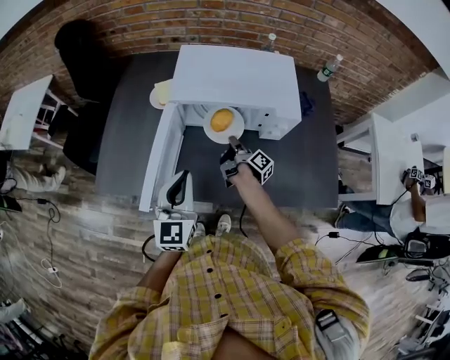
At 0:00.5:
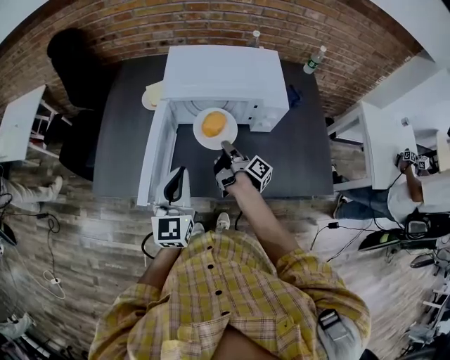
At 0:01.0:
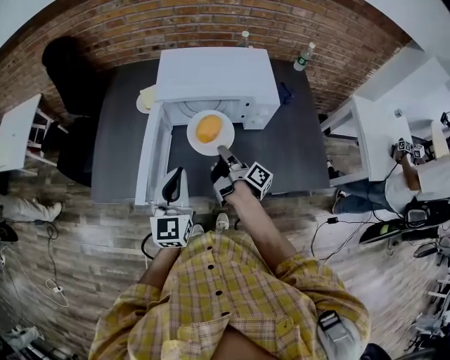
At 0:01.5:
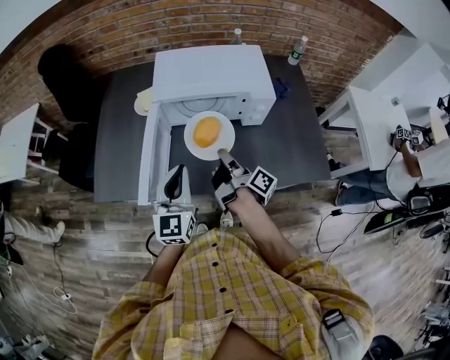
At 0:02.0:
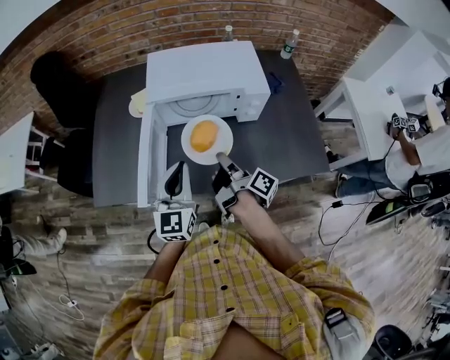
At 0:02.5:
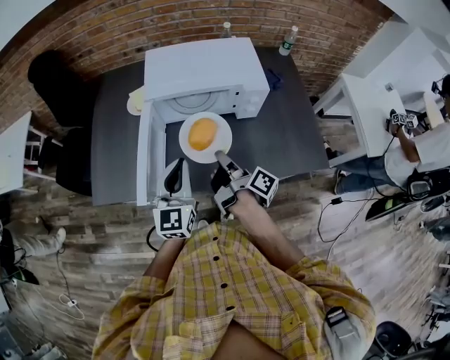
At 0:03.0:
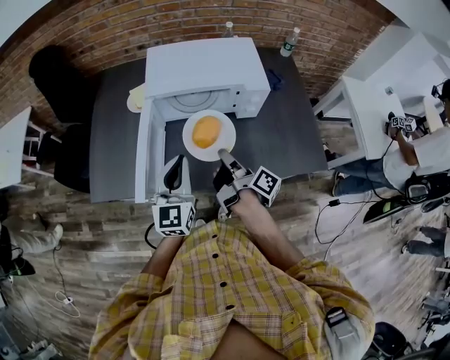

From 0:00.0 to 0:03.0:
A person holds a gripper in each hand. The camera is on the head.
From 0:00.0 to 0:01.5: The right gripper travels backward and upward by about 20 cm.
From 0:01.5 to 0:03.0: The grippers make only small movements.

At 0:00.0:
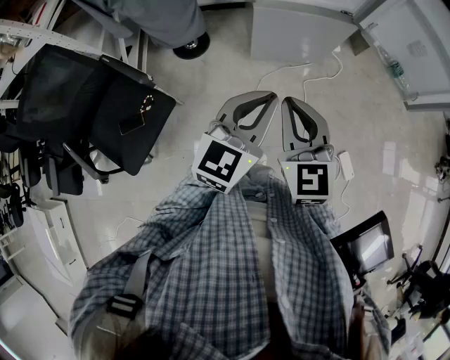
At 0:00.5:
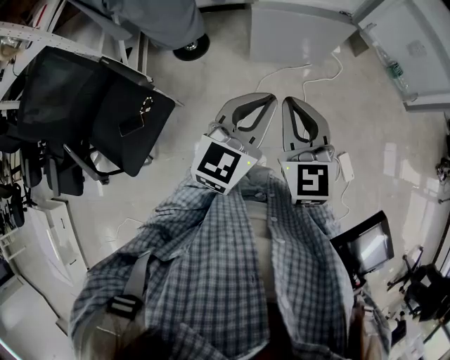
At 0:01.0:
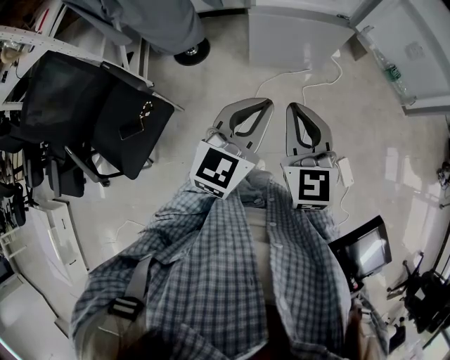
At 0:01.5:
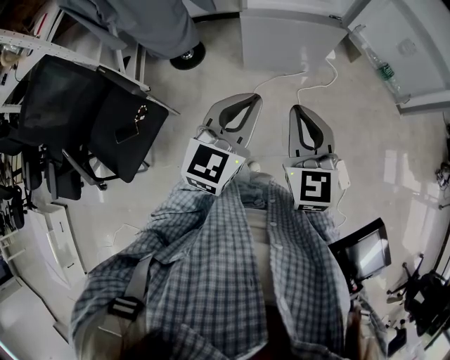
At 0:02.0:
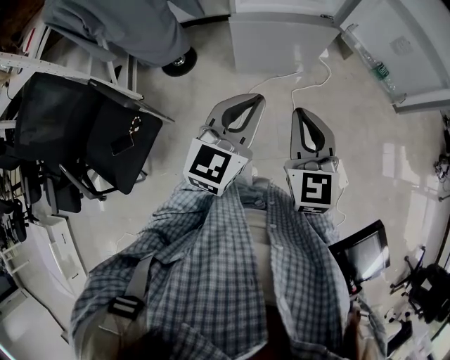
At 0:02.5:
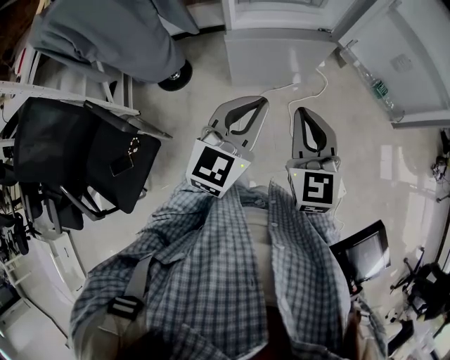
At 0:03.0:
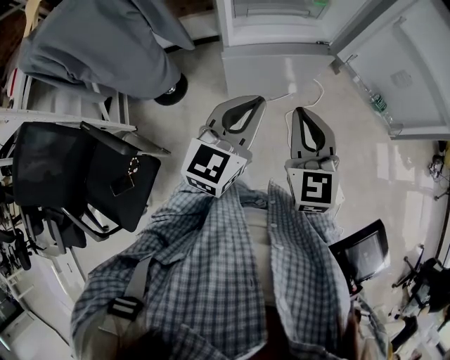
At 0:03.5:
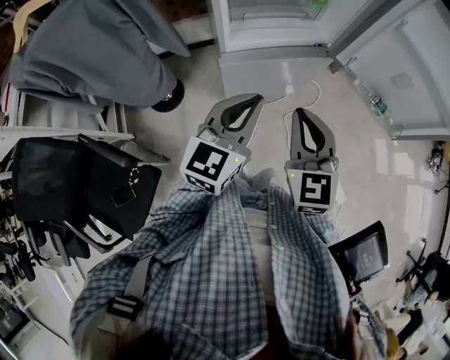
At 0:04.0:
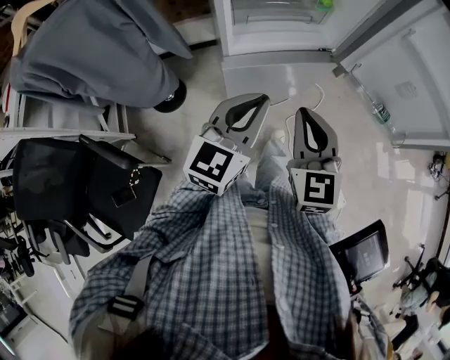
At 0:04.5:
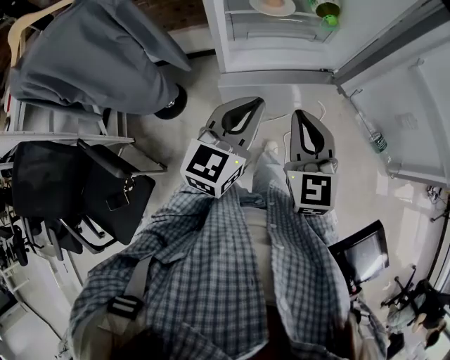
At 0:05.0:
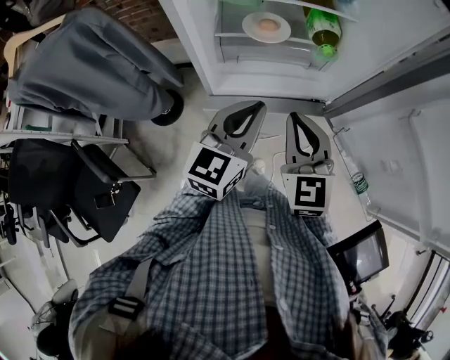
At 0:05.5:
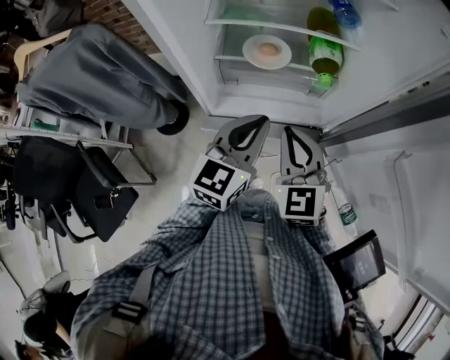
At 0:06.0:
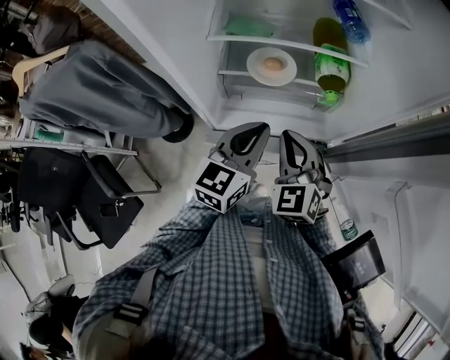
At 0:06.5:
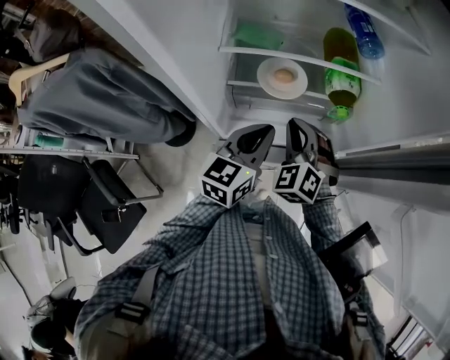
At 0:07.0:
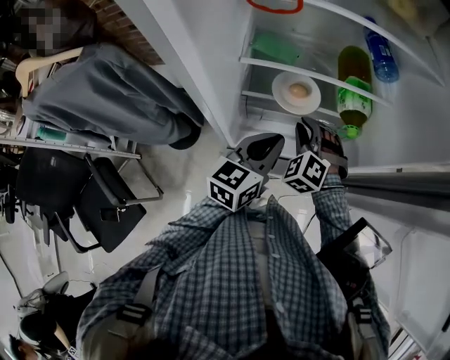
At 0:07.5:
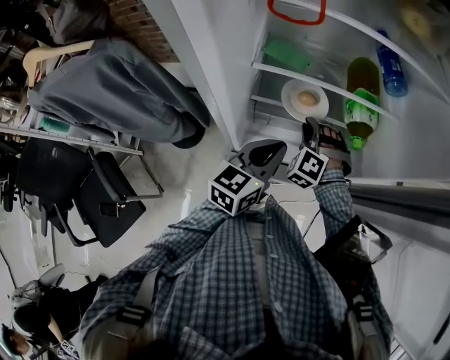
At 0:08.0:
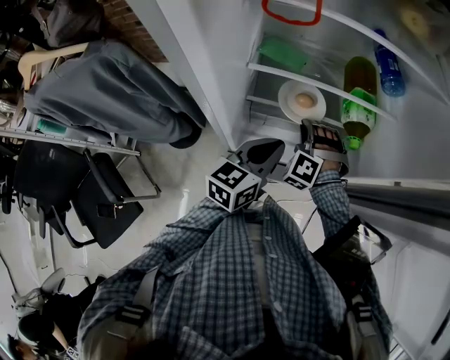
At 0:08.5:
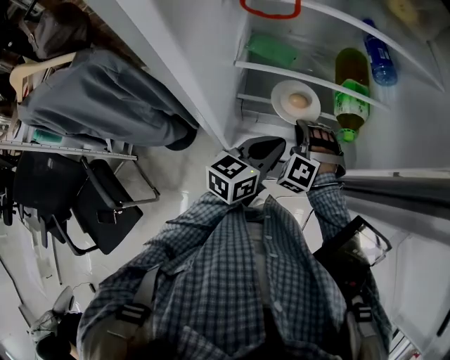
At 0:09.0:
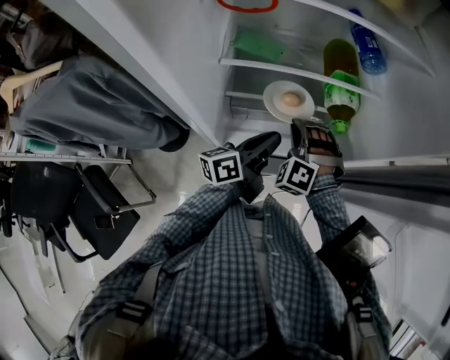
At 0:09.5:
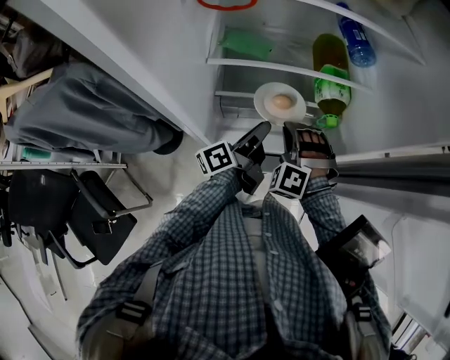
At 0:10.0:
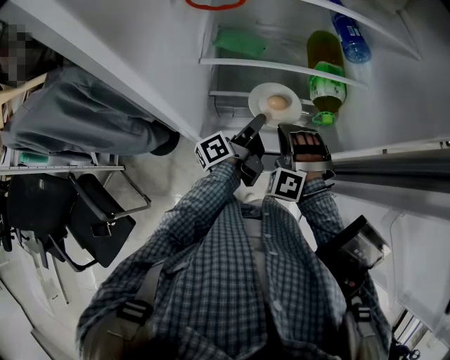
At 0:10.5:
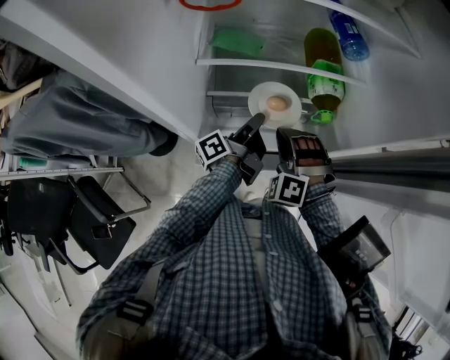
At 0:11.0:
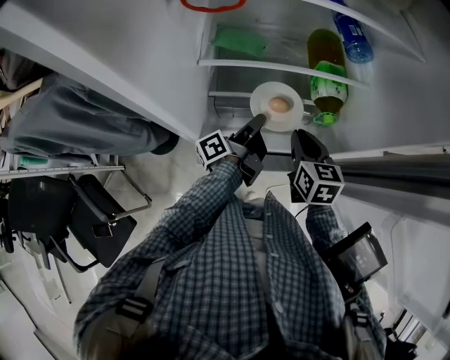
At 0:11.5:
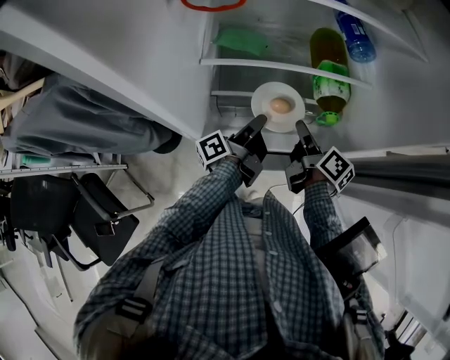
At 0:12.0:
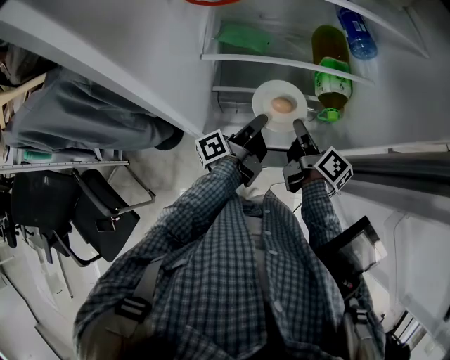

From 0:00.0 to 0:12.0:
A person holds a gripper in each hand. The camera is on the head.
From 0:00.0 to 0:02.0: The right gripper is displaced to the right and forward by roughly 10 cm; the left gripper shifts roughly 5 cm forward.
From 0:02.0 to 0:04.0: The grippers both shift forward by about 20 cm.
From 0:04.0 to 0:06.0: Both grippers travel together forward, about 30 cm. The right gripper changes its angle by roughly 30 degrees.
From 0:06.0 to 0:08.0: The left gripper is displaced forward and to the left by approximately 5 cm. Meanwhile the right gripper heads forward, downward and to the left, covering about 20 cm, and rotates around the line of its fingers by about 50 degrees, counterclockwise from behind.
From 0:08.0 to 0:10.0: The right gripper shifts by some 5 cm; the left gripper moves downward and forward, approximately 10 cm, twists about 60 degrees counterclockwise, seen from behind, and opens its fingers.
From 0:10.0 to 0:12.0: The right gripper travels to the right by approximately 5 cm, and rolls clockwise, seen from behind, by roughly 140 degrees.

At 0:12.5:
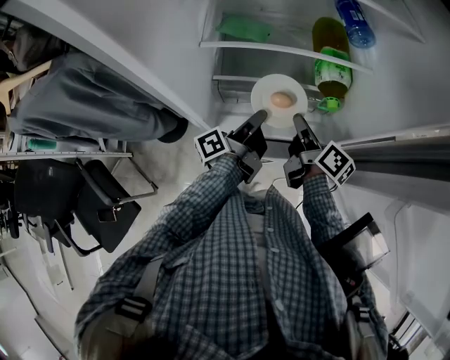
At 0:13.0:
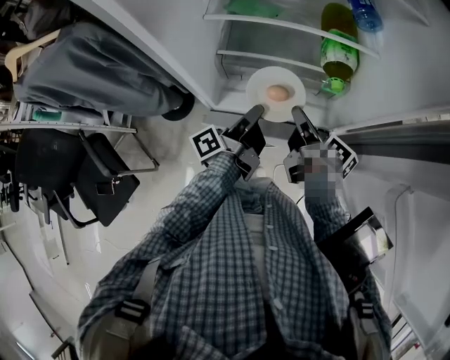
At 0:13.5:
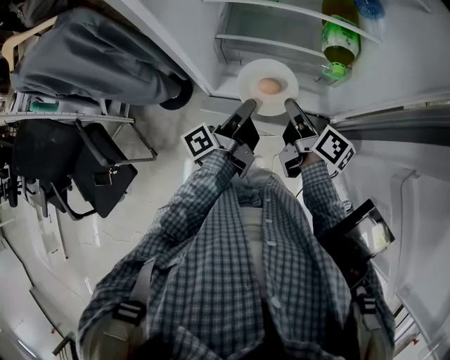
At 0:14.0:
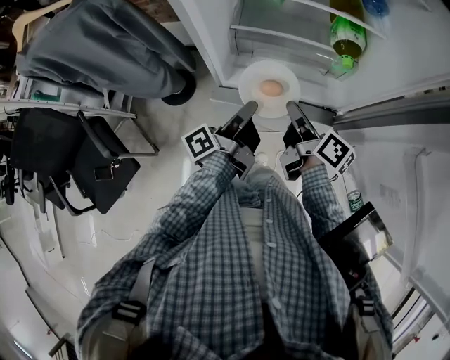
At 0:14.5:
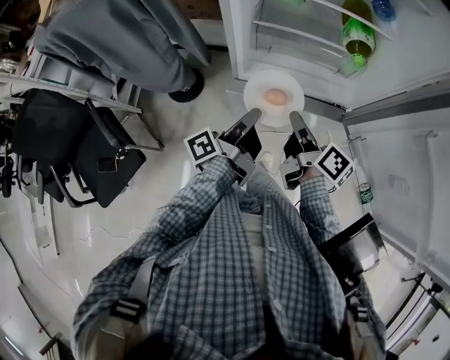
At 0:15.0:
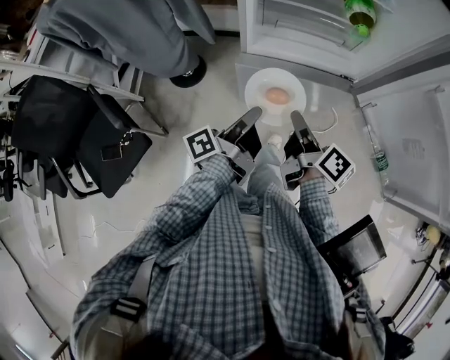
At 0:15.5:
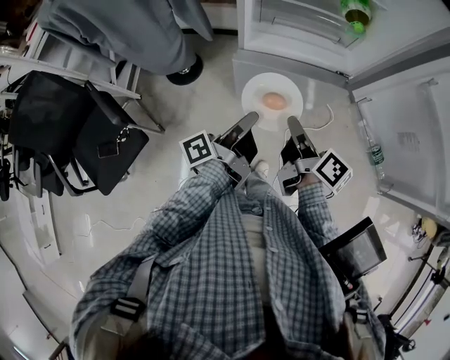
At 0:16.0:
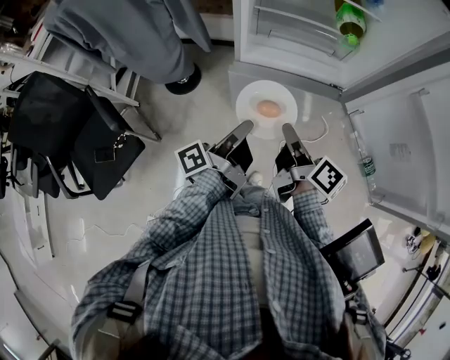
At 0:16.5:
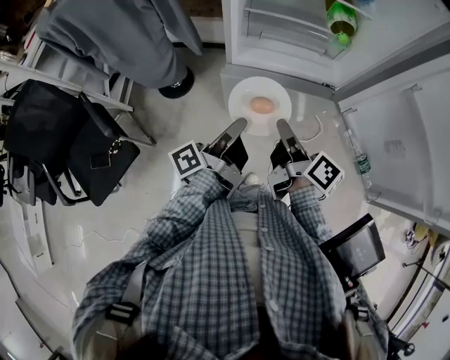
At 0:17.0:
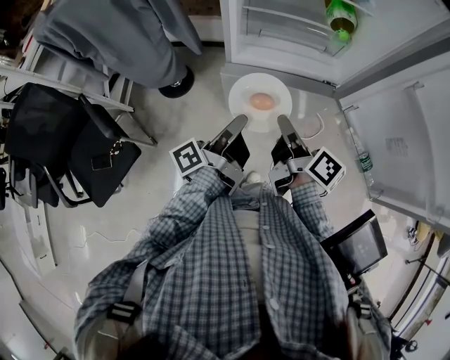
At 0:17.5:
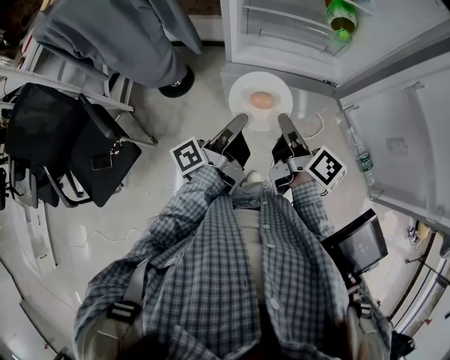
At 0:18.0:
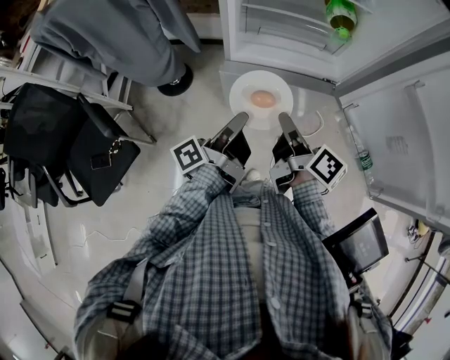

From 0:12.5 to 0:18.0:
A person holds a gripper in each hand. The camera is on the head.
From 0:12.5 to 0:14.5: Both grippers move backward and to the left, some 20 cm.
From 0:14.5 to 0:16.0: Both grippers travel together backward, approximately 15 cm.
From 0:16.0 to 0:18.0: The grippers stay close to where they were, moving slightly.

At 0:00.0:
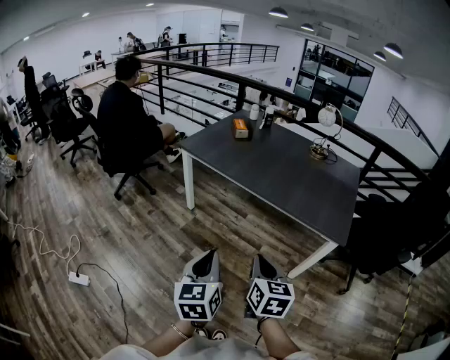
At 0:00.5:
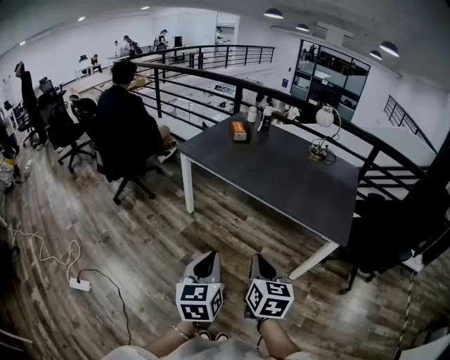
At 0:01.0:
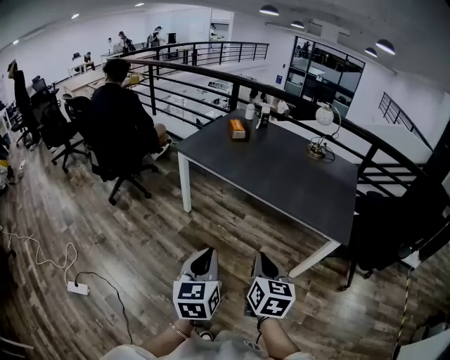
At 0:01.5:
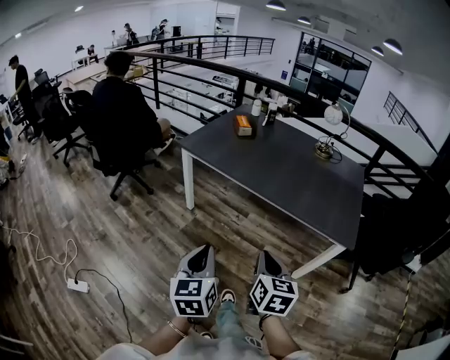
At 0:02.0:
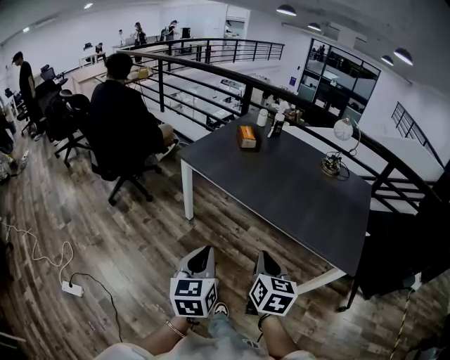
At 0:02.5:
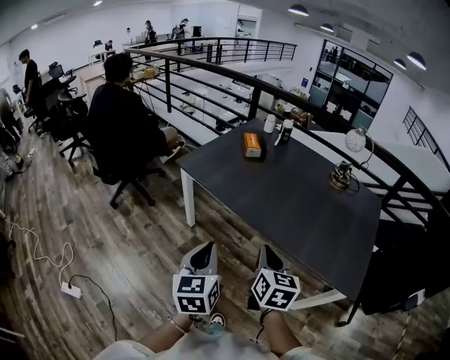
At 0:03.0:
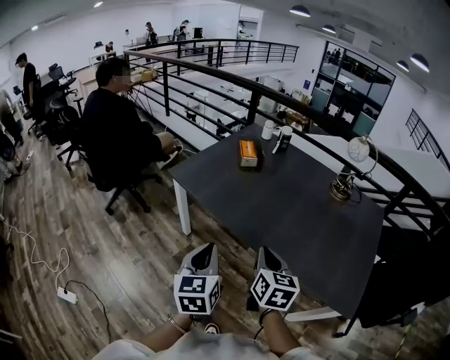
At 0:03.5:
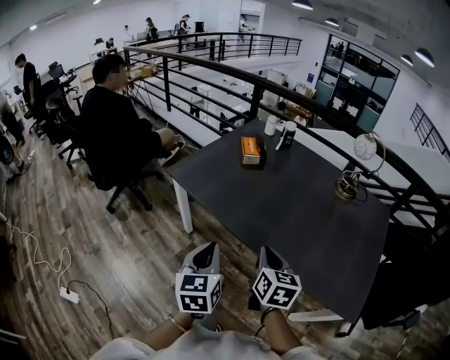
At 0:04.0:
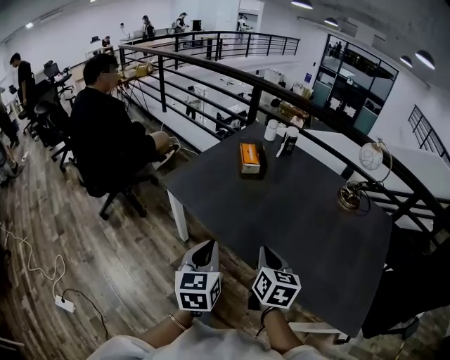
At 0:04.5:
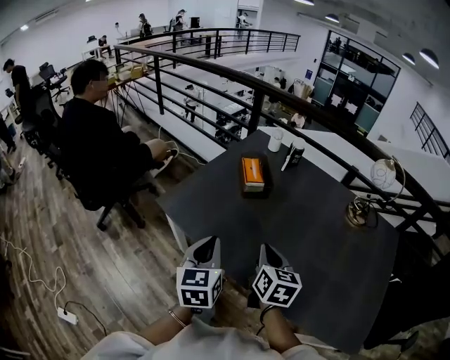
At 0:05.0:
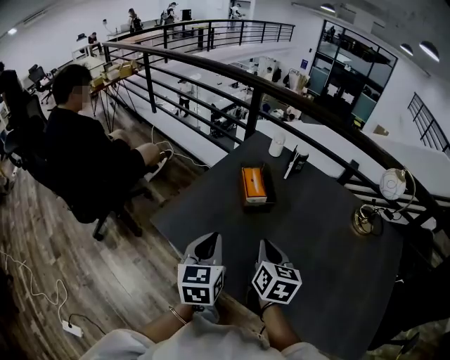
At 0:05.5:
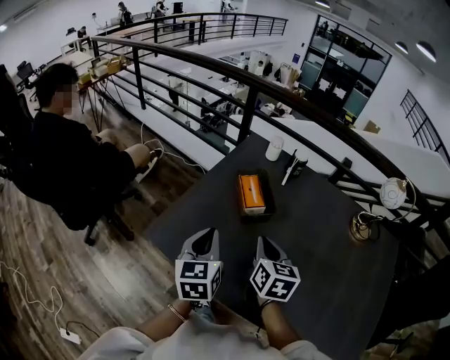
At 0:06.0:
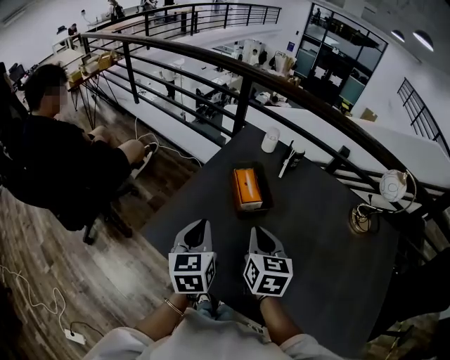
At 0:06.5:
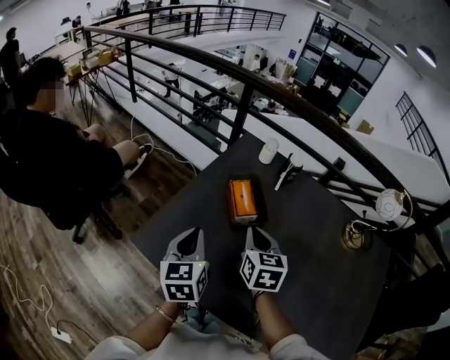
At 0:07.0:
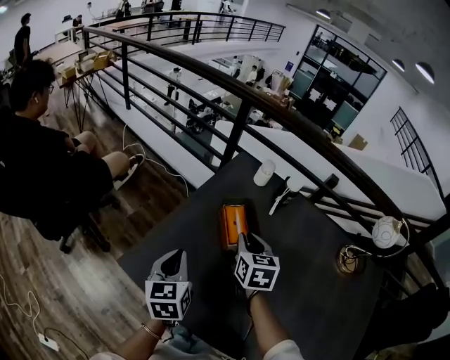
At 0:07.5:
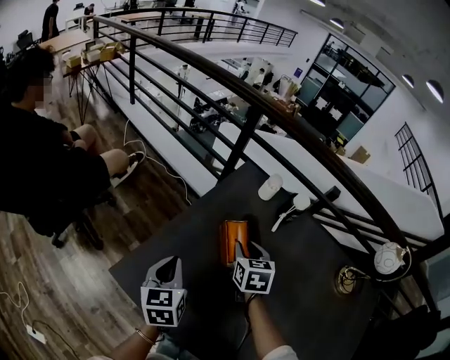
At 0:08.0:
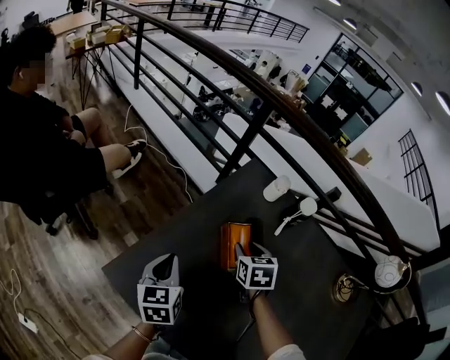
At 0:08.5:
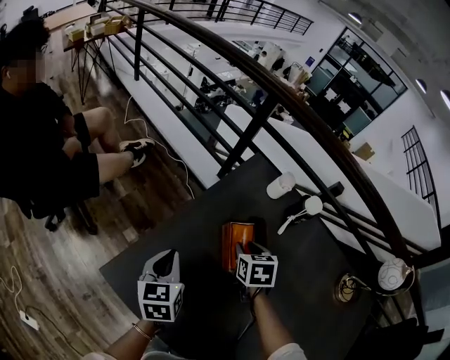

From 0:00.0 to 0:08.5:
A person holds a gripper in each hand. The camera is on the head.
From 0:00.0 to 0:02.0: The two grippers go some 15 cm forward.
From 0:02.0 to 0:04.0: Both grippers move forward, roughly 30 cm.
From 0:04.0 to 0:06.5: Both grippers travel together forward, roughly 35 cm.
From 0:06.5 to 0:08.5: Both grippers move forward and downward, some 20 cm. The right gripper turns by roughly 30 degrees, and opens its fingers.
